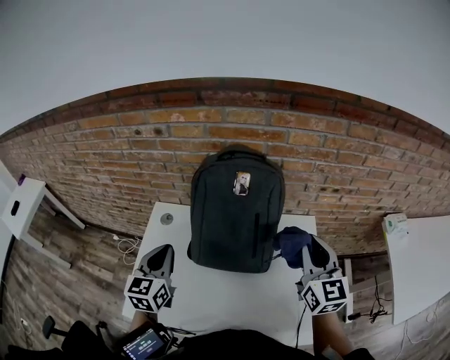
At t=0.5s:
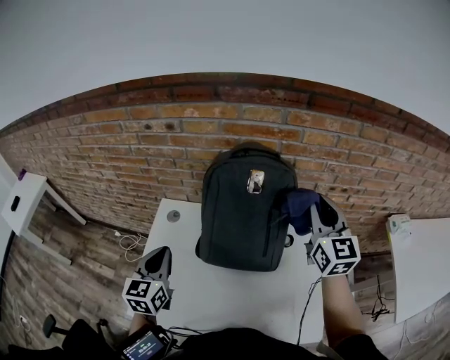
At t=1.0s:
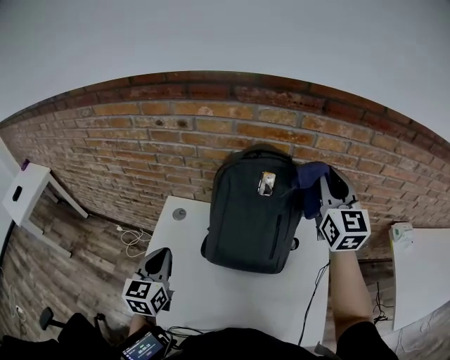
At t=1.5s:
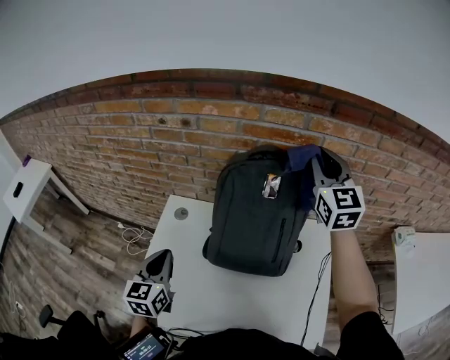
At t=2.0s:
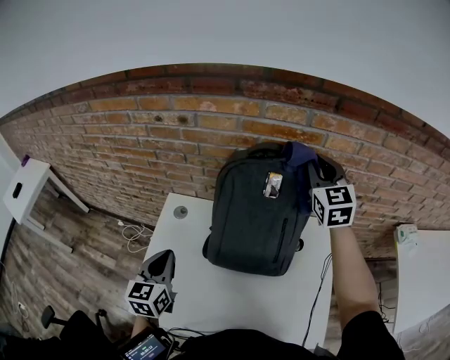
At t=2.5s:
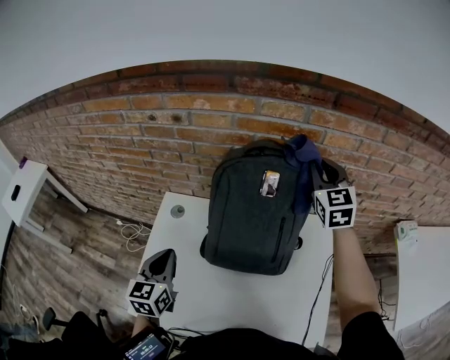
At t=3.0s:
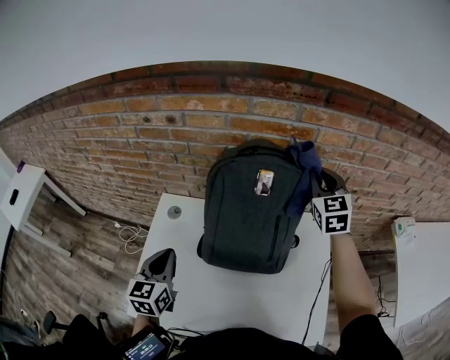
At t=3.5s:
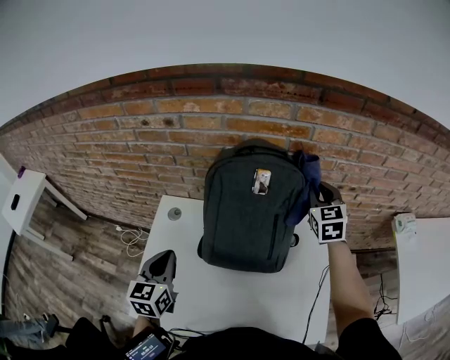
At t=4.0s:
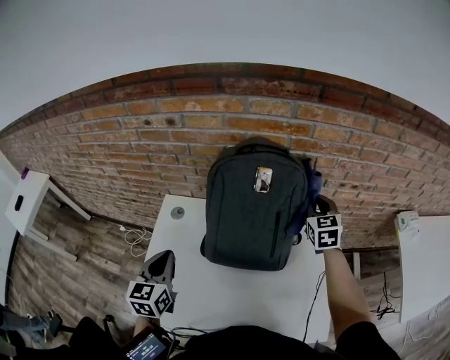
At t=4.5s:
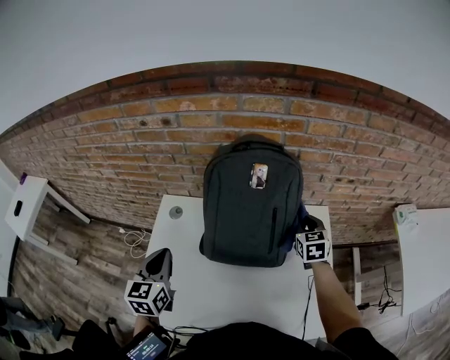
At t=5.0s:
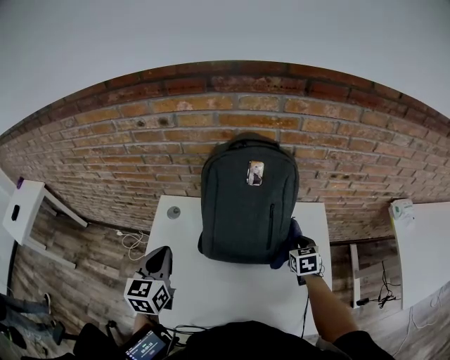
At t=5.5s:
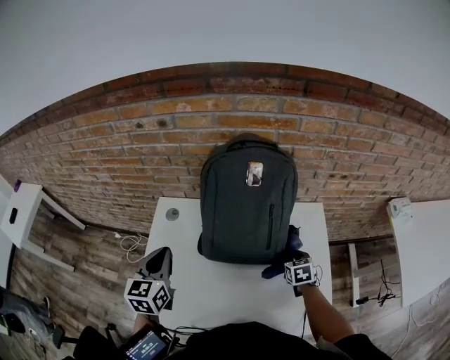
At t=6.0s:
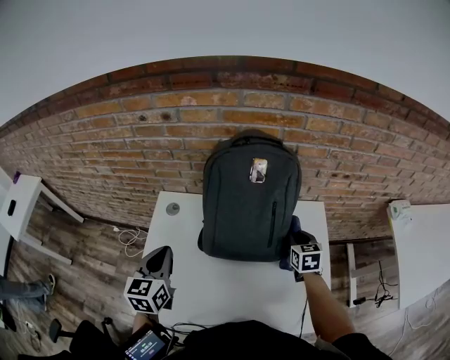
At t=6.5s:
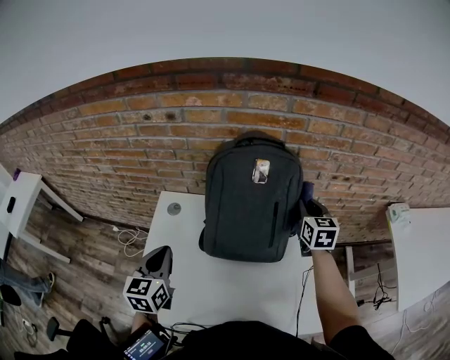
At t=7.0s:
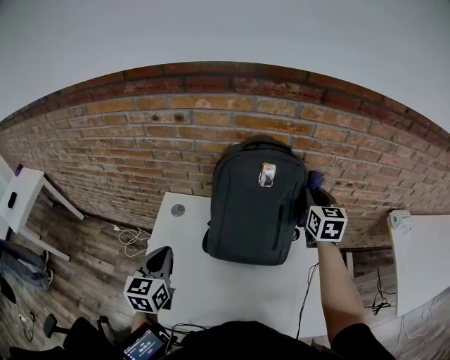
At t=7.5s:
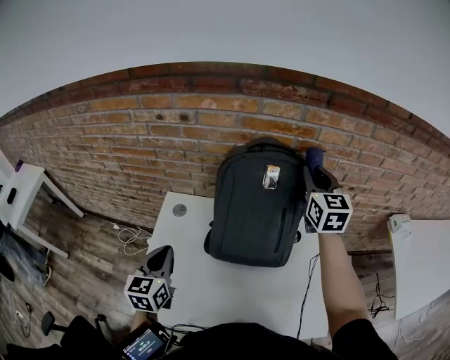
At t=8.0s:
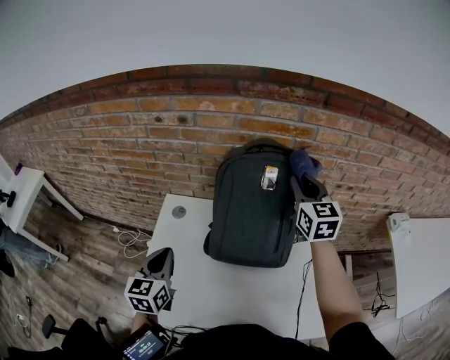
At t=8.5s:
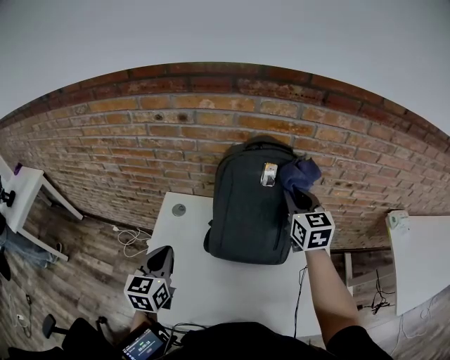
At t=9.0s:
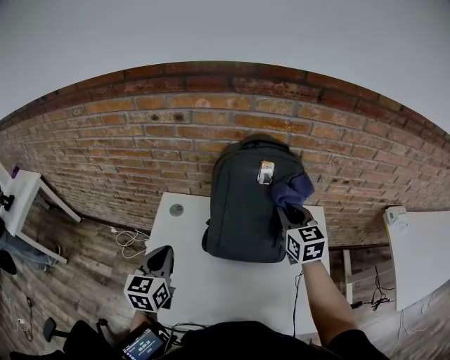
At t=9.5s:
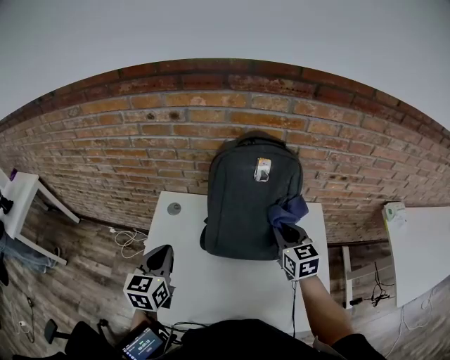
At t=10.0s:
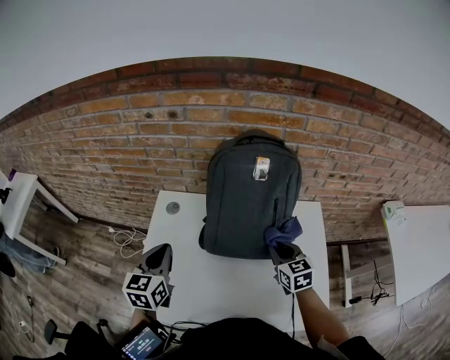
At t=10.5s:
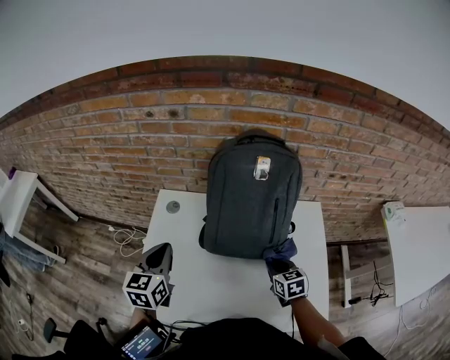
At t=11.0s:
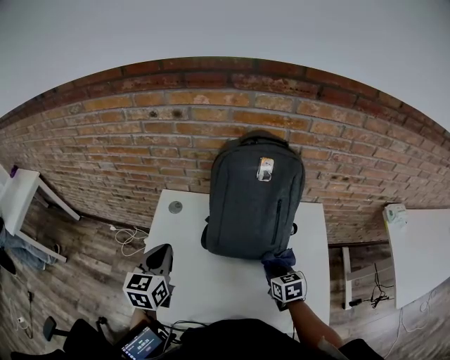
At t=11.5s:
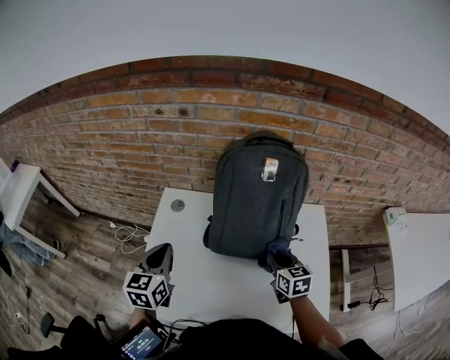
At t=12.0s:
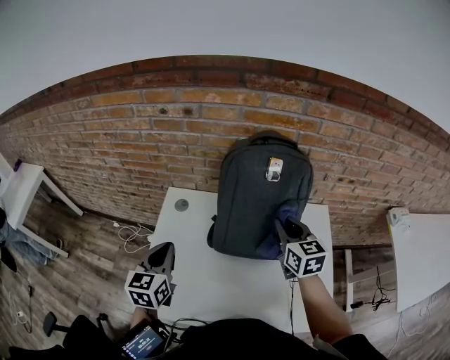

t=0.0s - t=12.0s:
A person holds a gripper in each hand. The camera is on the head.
t=0.0s - t=2.0s: The left gripper goes roughly 5 cm to the left, while the right gripper is displaced forward by approximately 25 cm.
t=2.0s - t=4.0s: The right gripper moves downward and to the right, approximately 20 cm.
t=4.0s - t=6.0s: The right gripper goes approximately 15 cm downward and backward.
t=6.0s - t=8.0s: The right gripper heads upward, covering some 25 cm, and rotates some 30 degrees.
t=8.0s - t=10.0s: The right gripper is displaced downward and backward by approximately 25 cm, and turns by some 20 degrees.
t=10.0s - t=12.0s: The right gripper heads upward and forward, covering approximately 10 cm.

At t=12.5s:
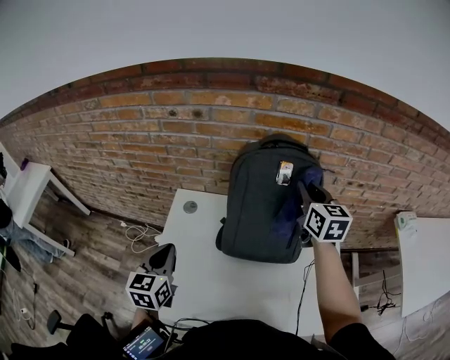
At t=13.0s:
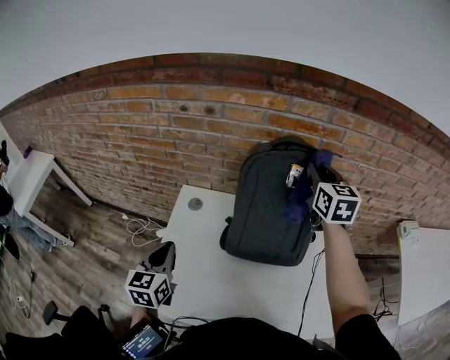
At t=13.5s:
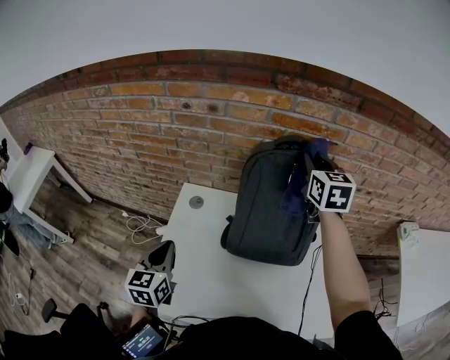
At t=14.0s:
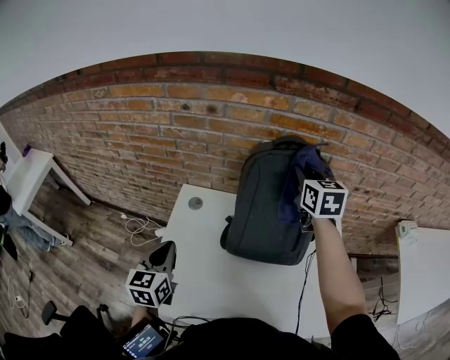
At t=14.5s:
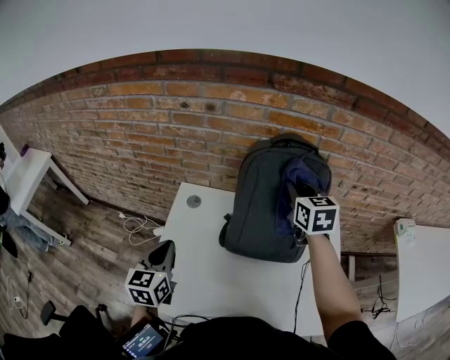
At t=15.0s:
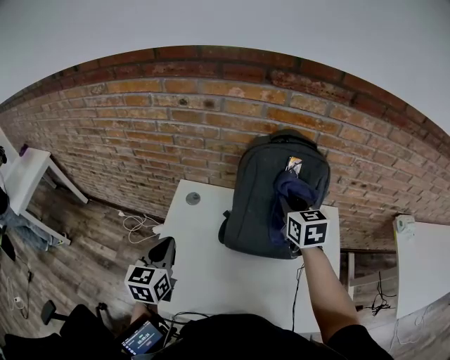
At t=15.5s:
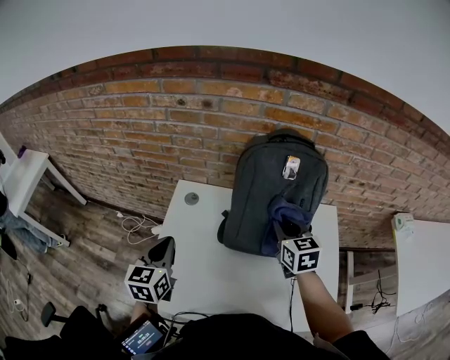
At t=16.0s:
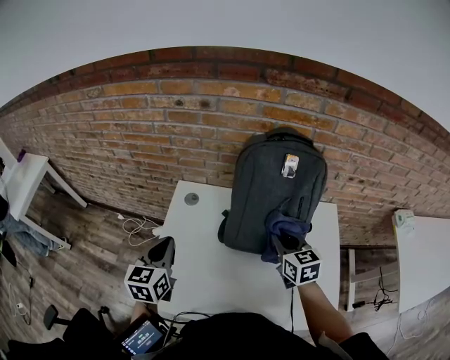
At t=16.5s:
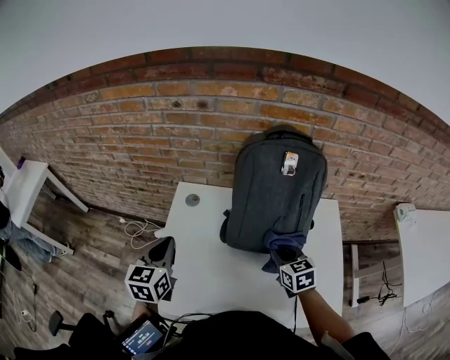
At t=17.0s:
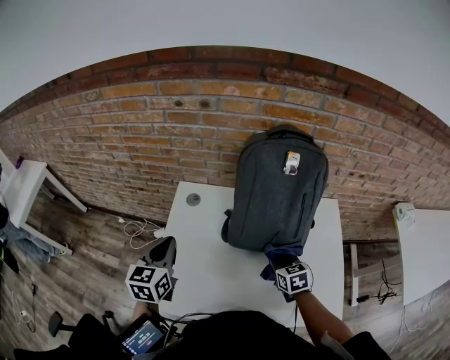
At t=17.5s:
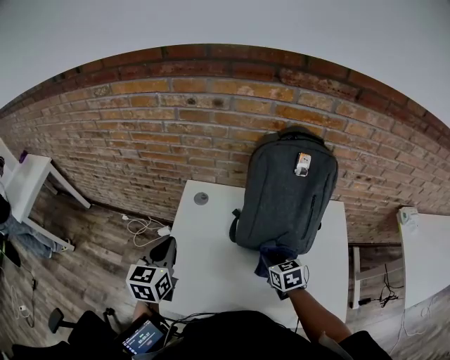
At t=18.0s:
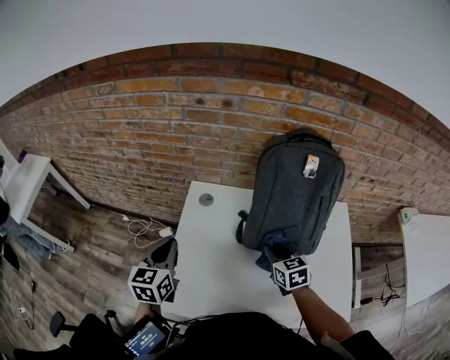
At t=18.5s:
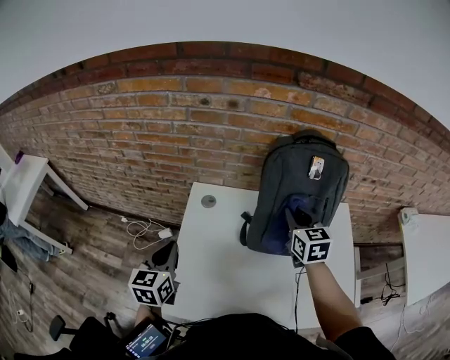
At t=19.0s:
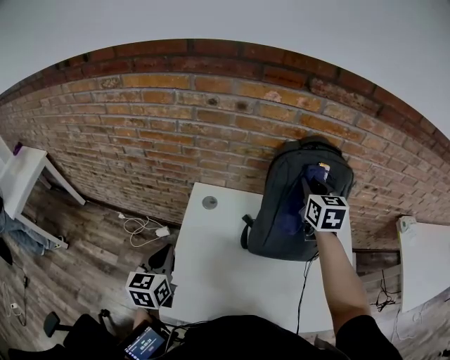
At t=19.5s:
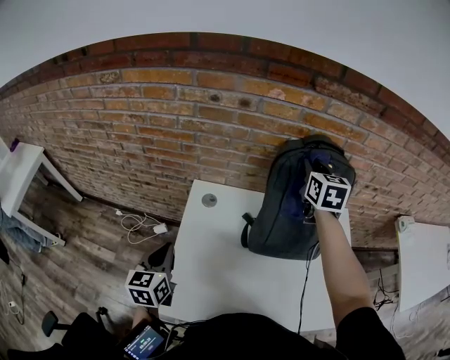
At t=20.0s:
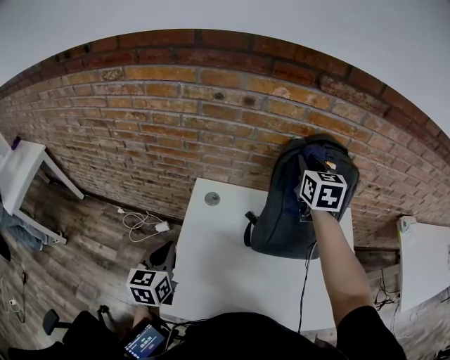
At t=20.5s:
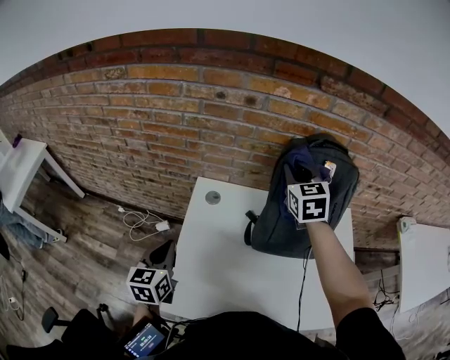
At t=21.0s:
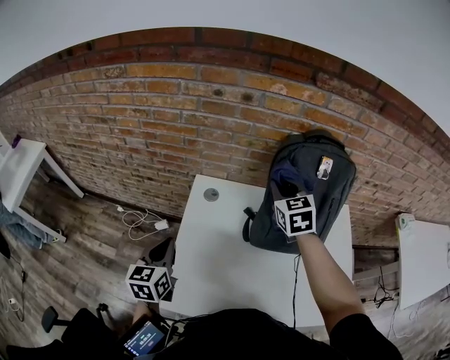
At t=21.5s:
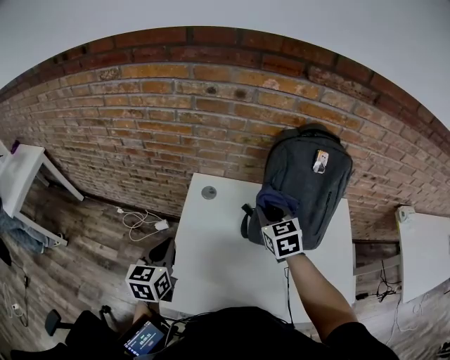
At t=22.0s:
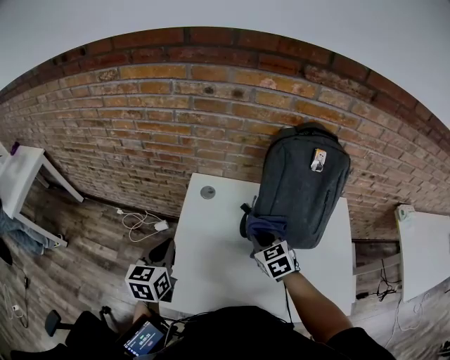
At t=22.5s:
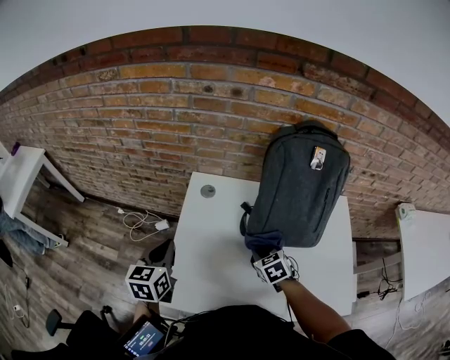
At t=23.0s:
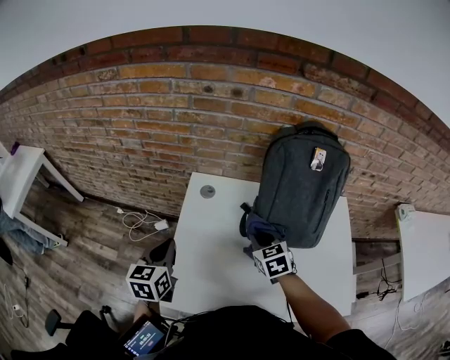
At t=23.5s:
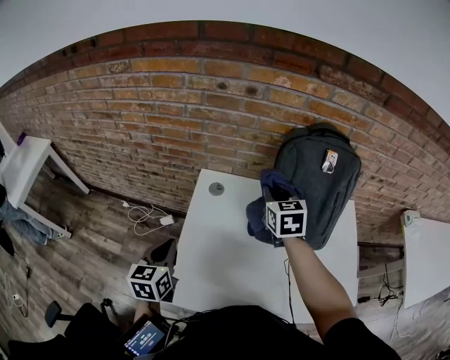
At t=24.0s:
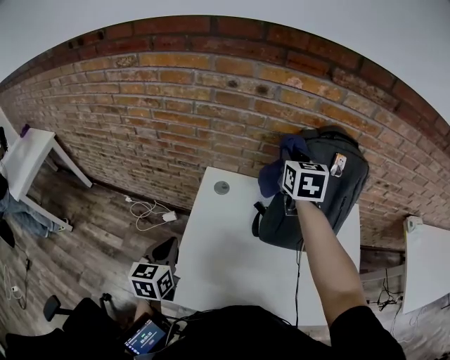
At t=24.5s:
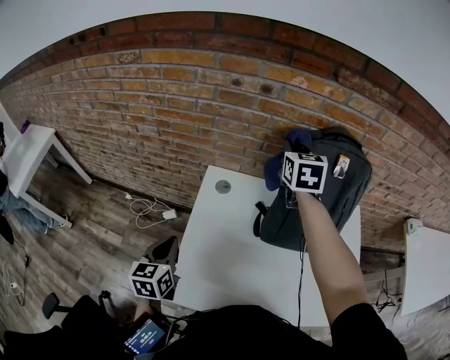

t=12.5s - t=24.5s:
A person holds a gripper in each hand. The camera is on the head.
t=12.5s - t=14.5s: The right gripper is displaced to the left by roughly 5 cm.
t=14.5s - t=16.5s: The right gripper goes some 25 cm downward and backward.
t=16.5s - t=18.5s: The right gripper shifts roughly 15 cm upward and forward, while the left gripper is displaced to the left by about 5 cm.
t=18.5s - t=20.5s: The right gripper is displaced forward, upward and to the left by approximately 15 cm.
t=20.5s - t=22.5s: The right gripper travels downward and backward by roughly 35 cm, and tilts its fingers about 30 degrees downward.
t=22.5s - t=24.5s: The right gripper goes approximately 40 cm upward and forward, and swivels roughly 40 degrees.

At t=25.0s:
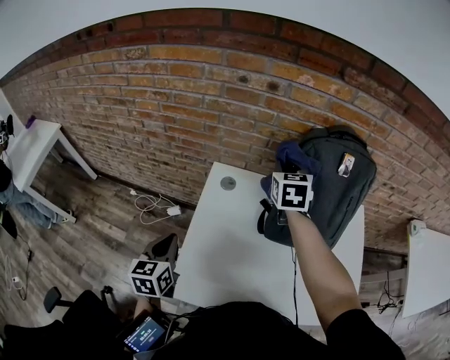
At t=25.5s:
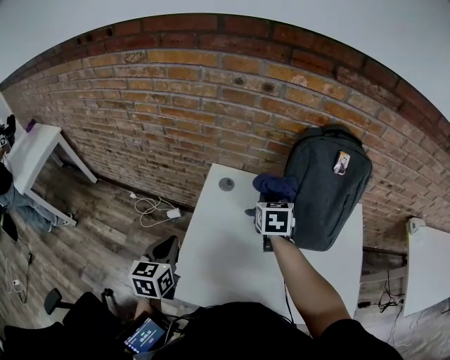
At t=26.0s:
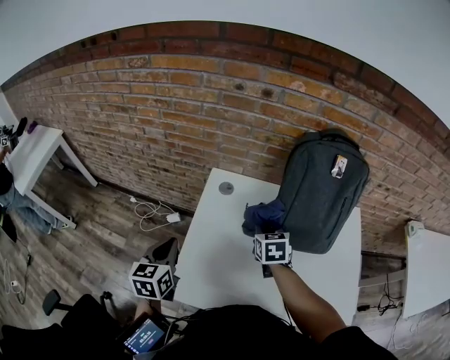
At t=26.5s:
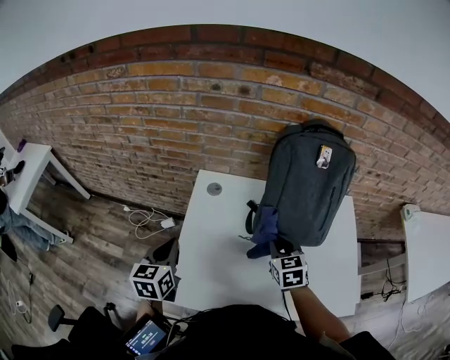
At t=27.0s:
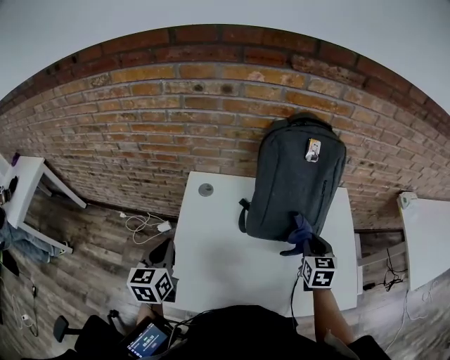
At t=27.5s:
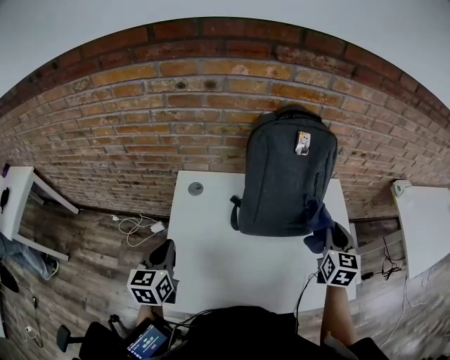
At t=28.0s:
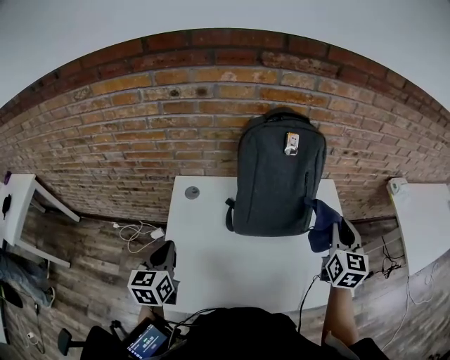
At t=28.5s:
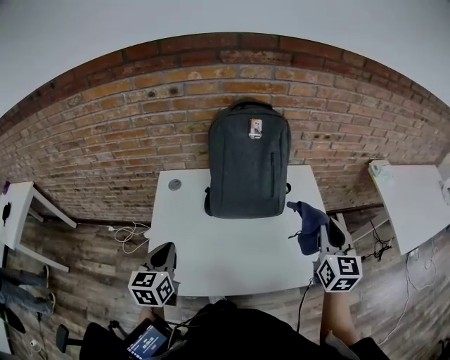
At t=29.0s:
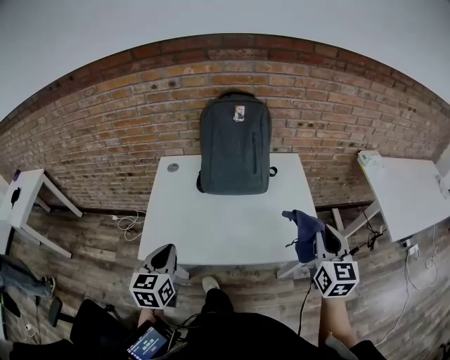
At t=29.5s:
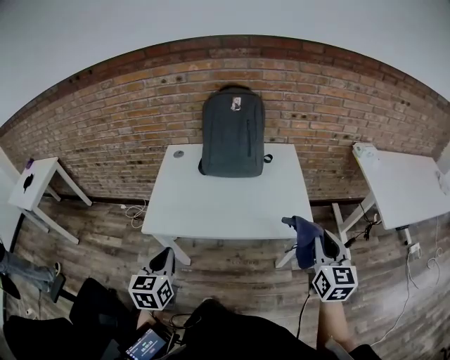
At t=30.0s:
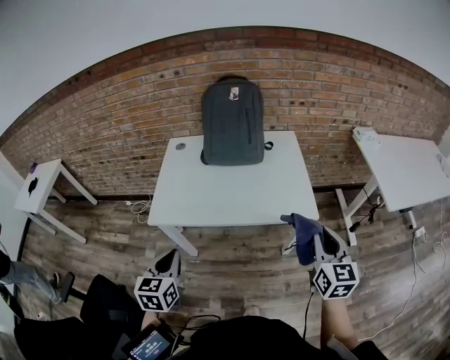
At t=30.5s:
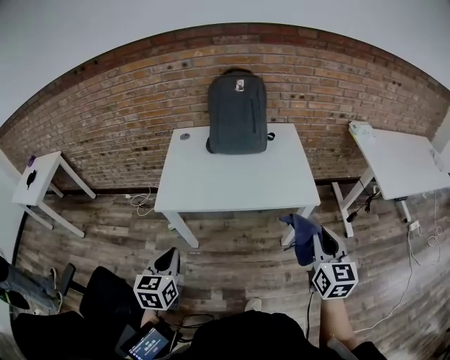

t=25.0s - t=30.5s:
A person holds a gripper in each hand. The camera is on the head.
t=25.0s - t=27.0s: The right gripper shifts approximately 30 cm to the right, backward and downward.
t=27.0s - t=28.5s: The right gripper shifts about 25 cm upward, to the right and backward, and rotates about 20 degrees, while the left gripper moves to the right, approximately 10 cm.
t=28.5s - t=30.5s: Both grippers move backward, roughly 35 cm.
